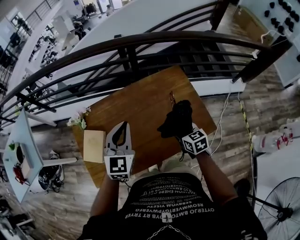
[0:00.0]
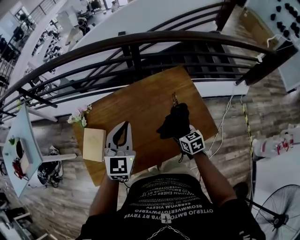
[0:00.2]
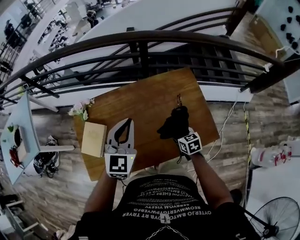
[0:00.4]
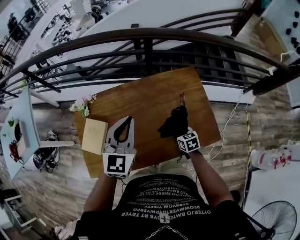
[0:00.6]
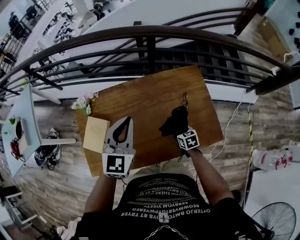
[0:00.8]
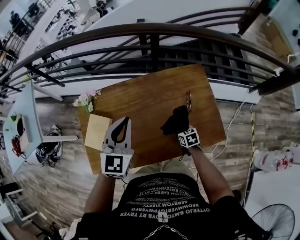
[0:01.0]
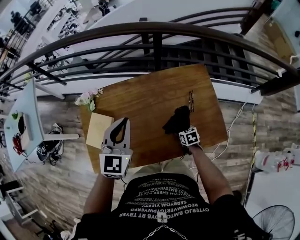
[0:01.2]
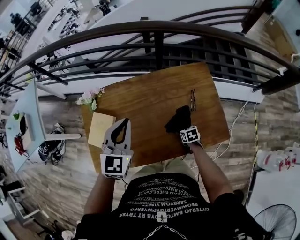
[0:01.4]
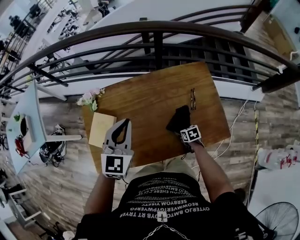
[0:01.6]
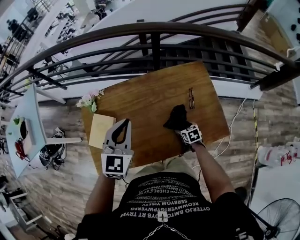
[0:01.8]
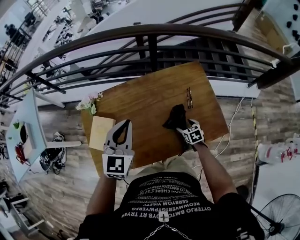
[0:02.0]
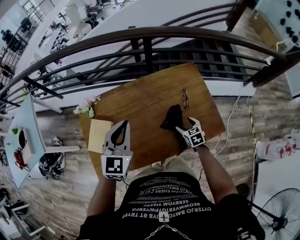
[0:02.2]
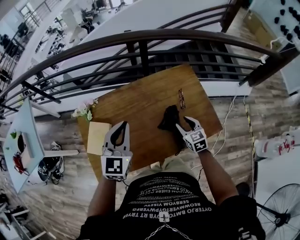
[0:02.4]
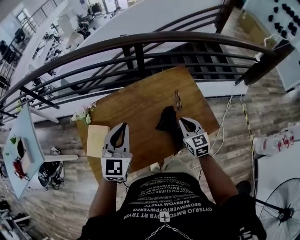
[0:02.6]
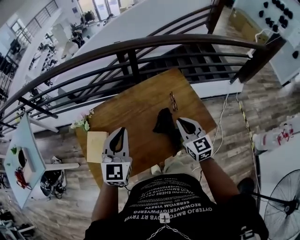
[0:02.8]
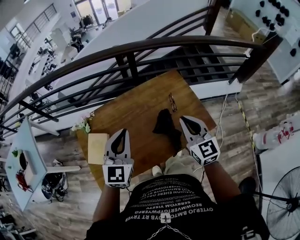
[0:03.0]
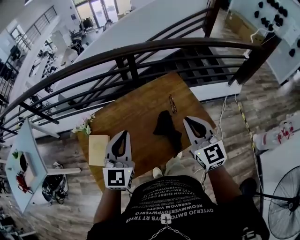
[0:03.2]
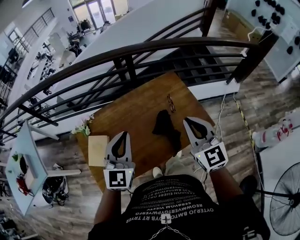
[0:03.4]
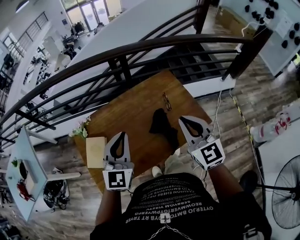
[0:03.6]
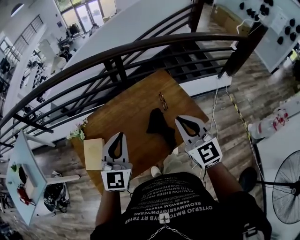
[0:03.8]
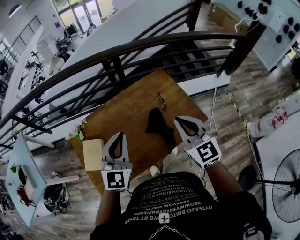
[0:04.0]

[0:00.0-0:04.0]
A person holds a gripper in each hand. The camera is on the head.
0:00.0 to 0:01.4: The right gripper is displaced downward by some 25 cm, and rotates roughly 20 degrees. The left gripper shifts some 5 cm to the left.
0:01.4 to 0:02.6: The right gripper shifts approximately 25 cm upward, tips its fingers upward by some 40 degrees, and closes up.
0:02.6 to 0:04.0: The left gripper ends up approximately 5 cm from where it was. The right gripper moves upward, approximately 20 cm.

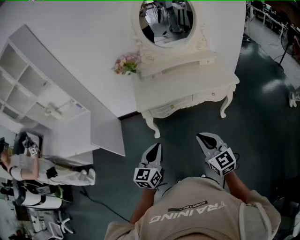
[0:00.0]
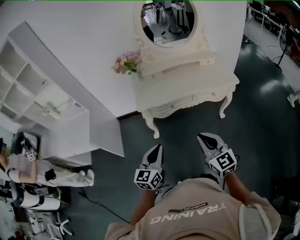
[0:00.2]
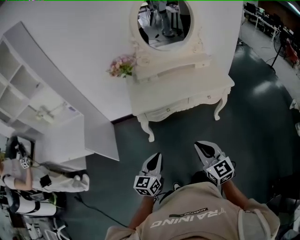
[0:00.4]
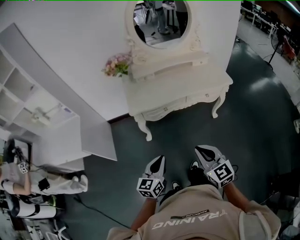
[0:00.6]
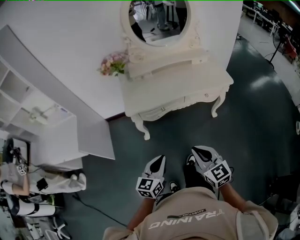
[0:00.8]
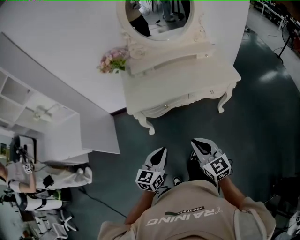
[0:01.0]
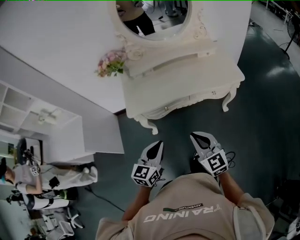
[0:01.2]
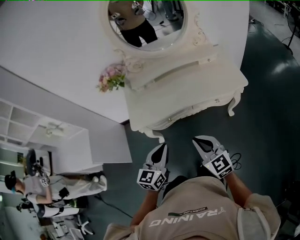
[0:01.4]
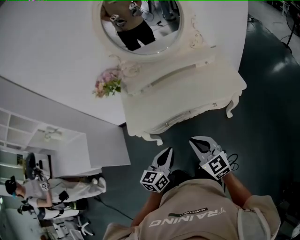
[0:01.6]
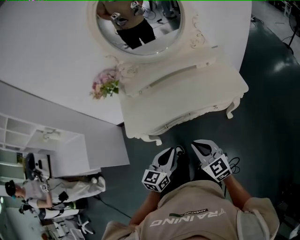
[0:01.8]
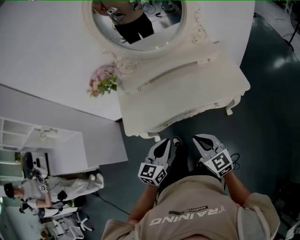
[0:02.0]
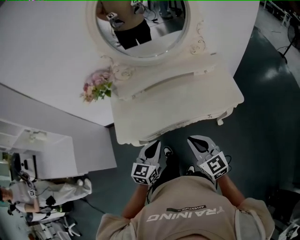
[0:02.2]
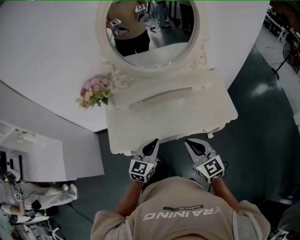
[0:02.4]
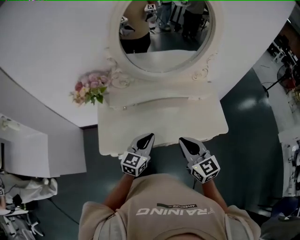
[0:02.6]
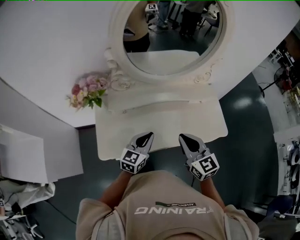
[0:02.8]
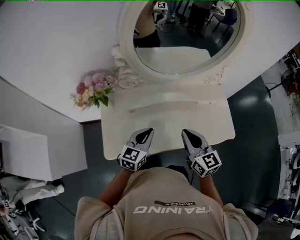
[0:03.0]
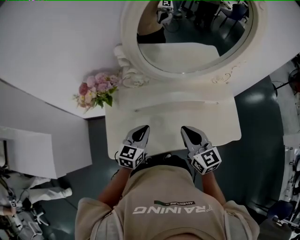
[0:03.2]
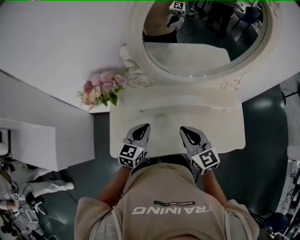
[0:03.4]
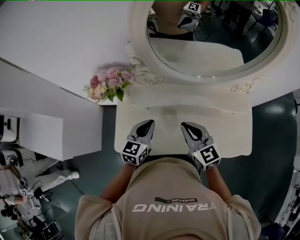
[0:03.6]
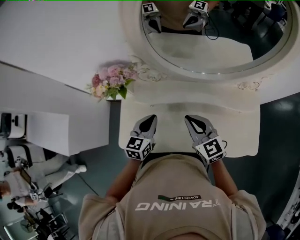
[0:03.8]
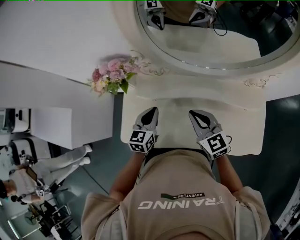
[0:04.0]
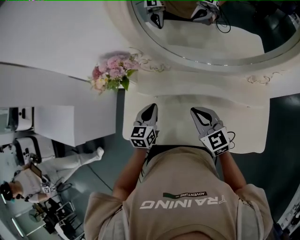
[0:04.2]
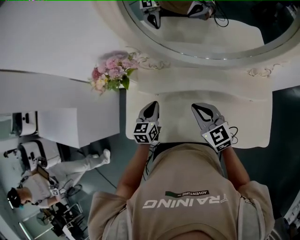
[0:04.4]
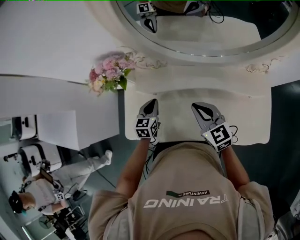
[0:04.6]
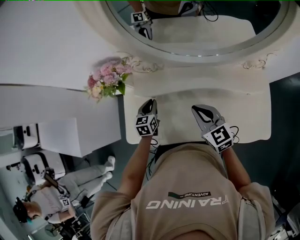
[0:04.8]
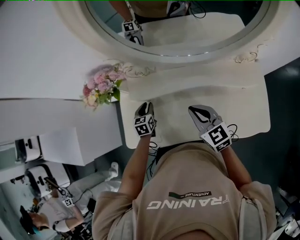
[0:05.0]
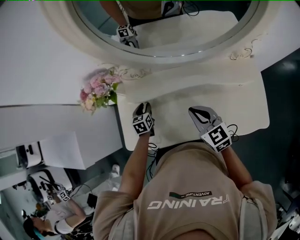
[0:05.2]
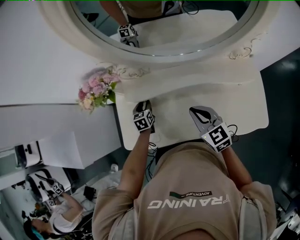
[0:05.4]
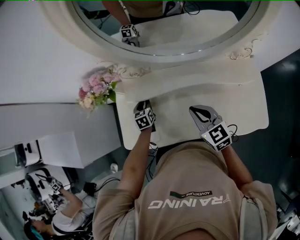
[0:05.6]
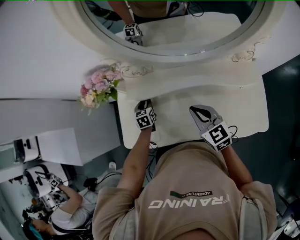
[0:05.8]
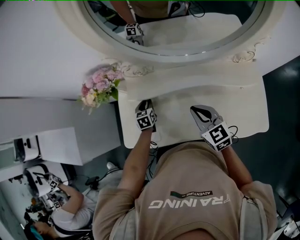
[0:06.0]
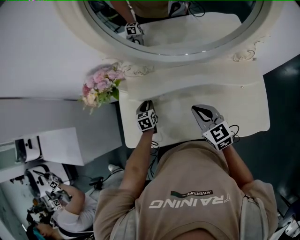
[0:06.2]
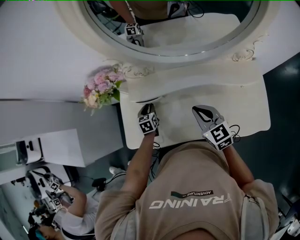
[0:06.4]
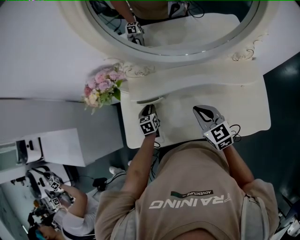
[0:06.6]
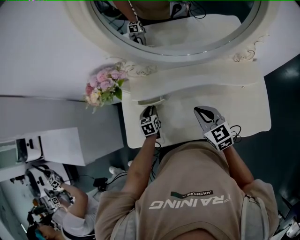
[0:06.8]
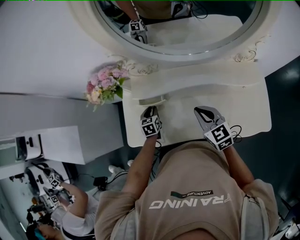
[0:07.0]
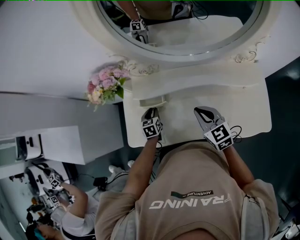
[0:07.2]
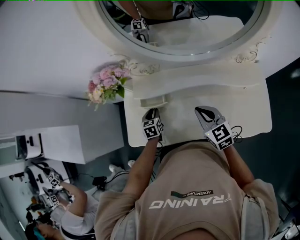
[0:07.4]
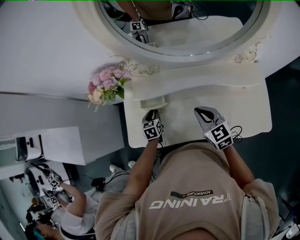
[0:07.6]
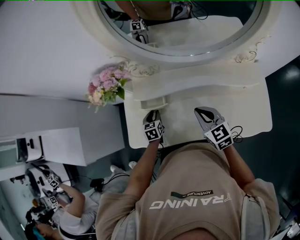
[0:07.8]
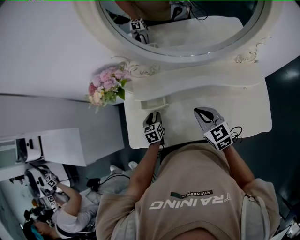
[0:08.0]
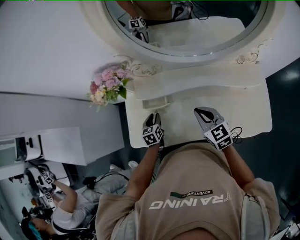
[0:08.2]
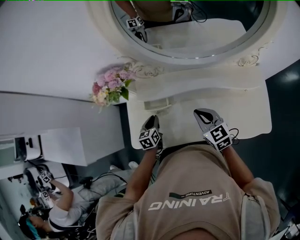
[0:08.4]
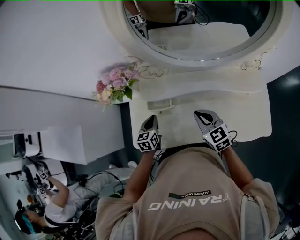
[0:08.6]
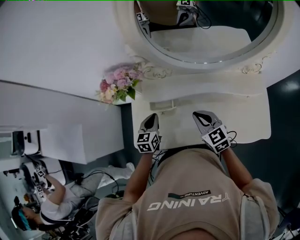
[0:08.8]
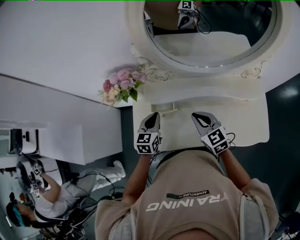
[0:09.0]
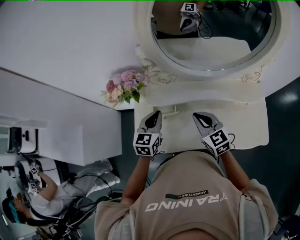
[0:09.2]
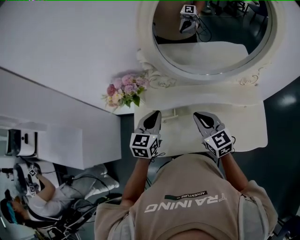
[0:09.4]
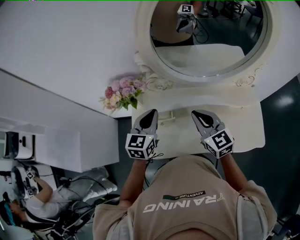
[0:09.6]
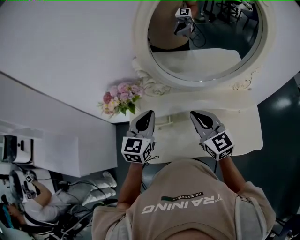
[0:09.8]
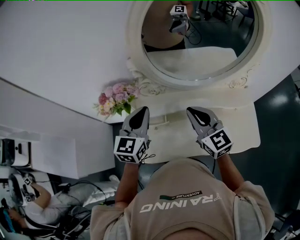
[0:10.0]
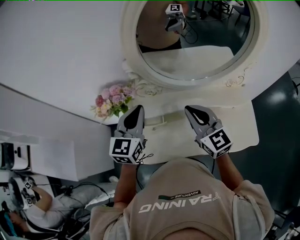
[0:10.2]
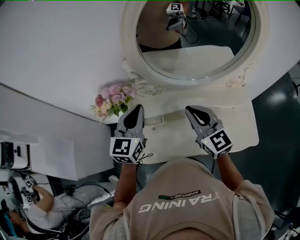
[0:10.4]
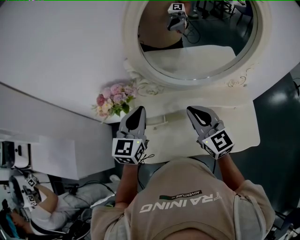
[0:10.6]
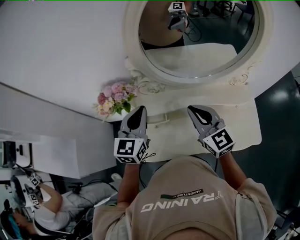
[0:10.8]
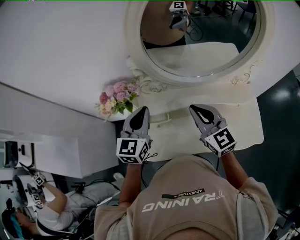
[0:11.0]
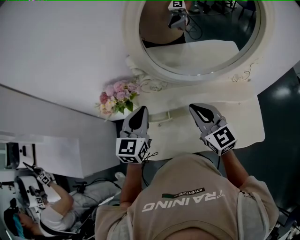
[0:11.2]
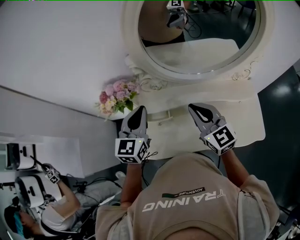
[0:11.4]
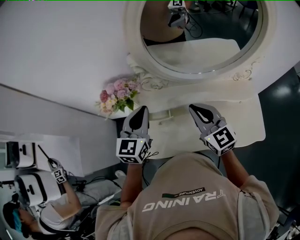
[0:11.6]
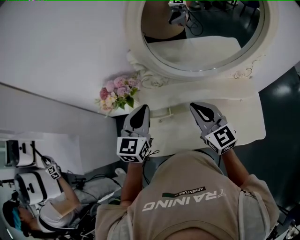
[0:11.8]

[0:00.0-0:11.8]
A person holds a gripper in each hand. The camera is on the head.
0:00.0 to 0:01.4: The left gripper shifts roughly 20 cm forward and to the right. Meanwhile the right gripper moves forward, some 15 cm.
0:01.4 to 0:03.0: The grippers both shift forward by approximately 35 cm.
0:03.0 to 0:04.4: The right gripper ends up approximately 15 cm from where it was, and turns by roughly 30 degrees; the left gripper ends up about 15 cm from where it was, and changes its angle by roughly 30 degrees.
0:04.4 to 0:06.0: The left gripper heads downward and forward, covering about 15 cm, and opens.
0:06.0 to 0:07.4: The left gripper heads backward, covering some 5 cm.
0:07.4 to 0:08.8: The left gripper is displaced upward by approximately 10 cm, and closes up; the right gripper shifts approximately 5 cm to the left.
0:08.8 to 0:10.4: The grippers both shift upward by roughly 20 cm. The left gripper rotates roughly 30 degrees; the right gripper changes its angle by approximately 20 degrees.
0:10.4 to 0:11.8: The grippers make only small movements.

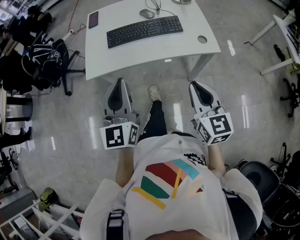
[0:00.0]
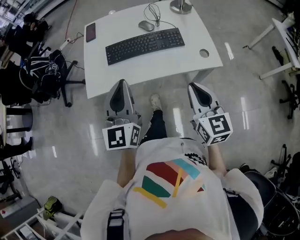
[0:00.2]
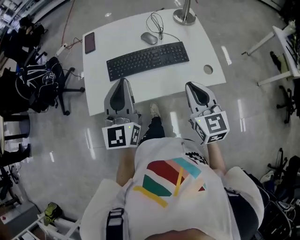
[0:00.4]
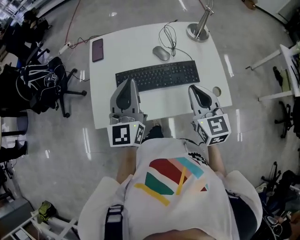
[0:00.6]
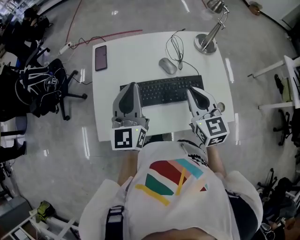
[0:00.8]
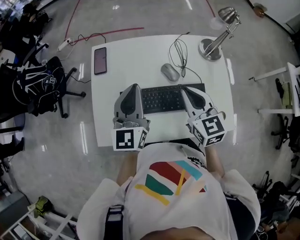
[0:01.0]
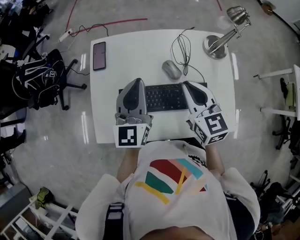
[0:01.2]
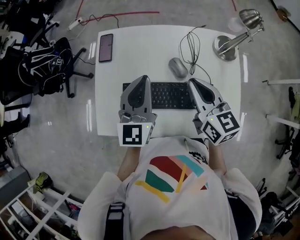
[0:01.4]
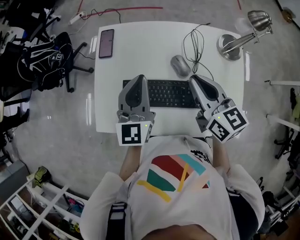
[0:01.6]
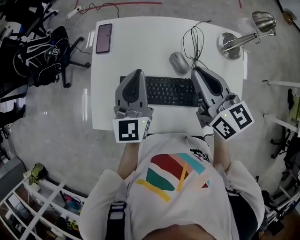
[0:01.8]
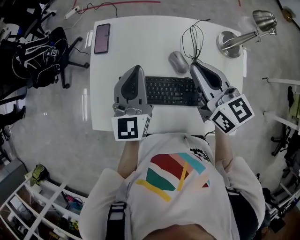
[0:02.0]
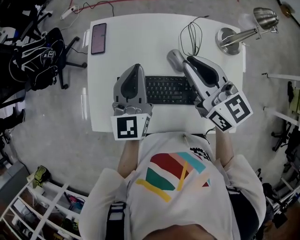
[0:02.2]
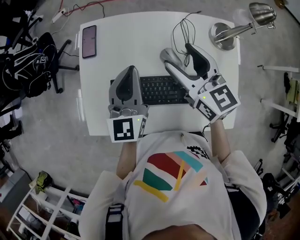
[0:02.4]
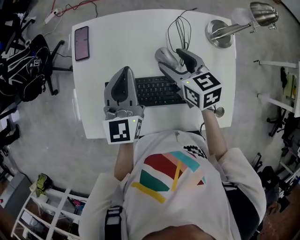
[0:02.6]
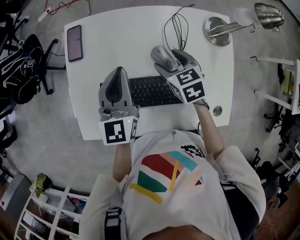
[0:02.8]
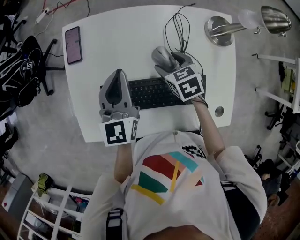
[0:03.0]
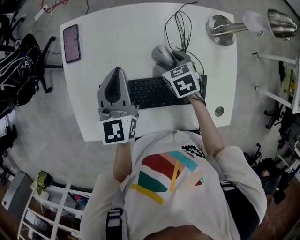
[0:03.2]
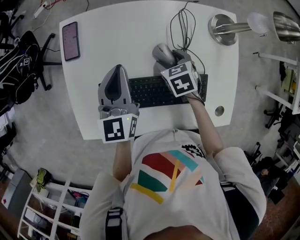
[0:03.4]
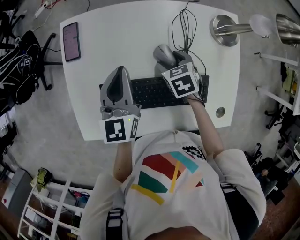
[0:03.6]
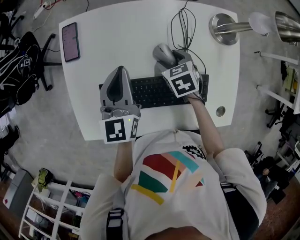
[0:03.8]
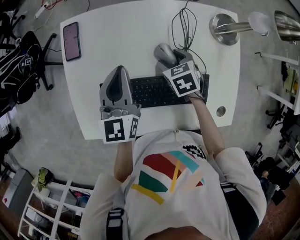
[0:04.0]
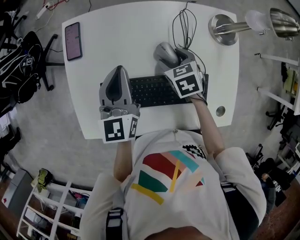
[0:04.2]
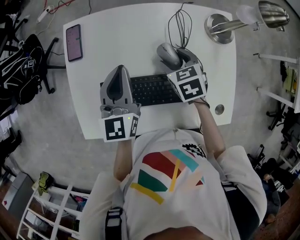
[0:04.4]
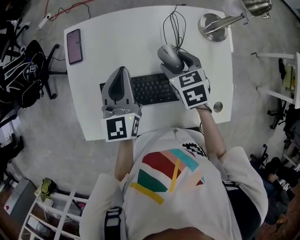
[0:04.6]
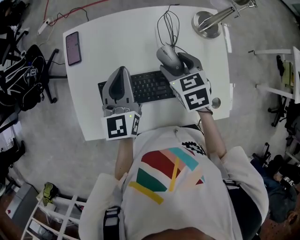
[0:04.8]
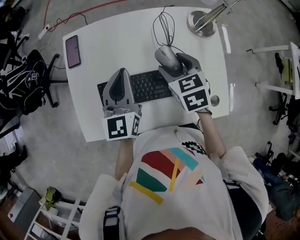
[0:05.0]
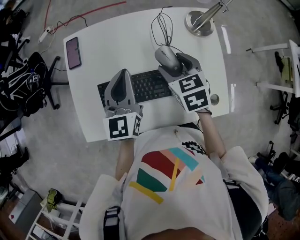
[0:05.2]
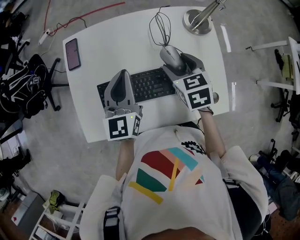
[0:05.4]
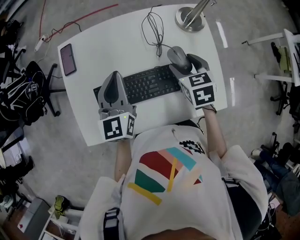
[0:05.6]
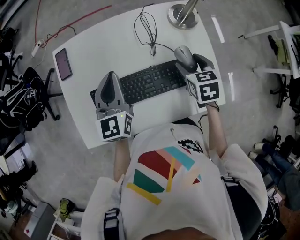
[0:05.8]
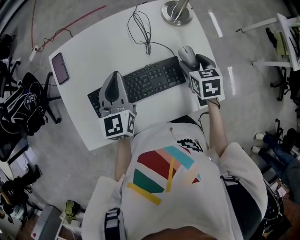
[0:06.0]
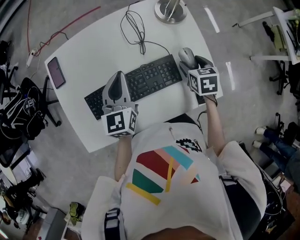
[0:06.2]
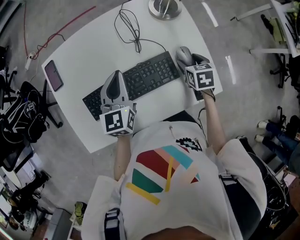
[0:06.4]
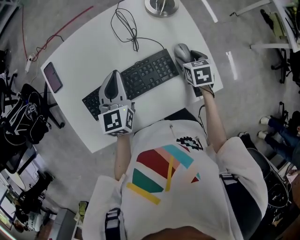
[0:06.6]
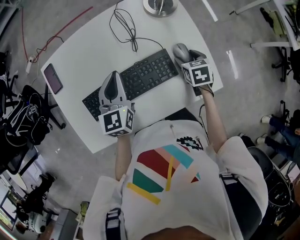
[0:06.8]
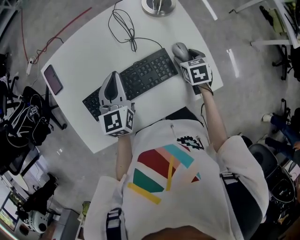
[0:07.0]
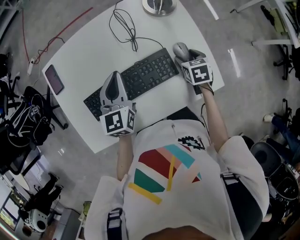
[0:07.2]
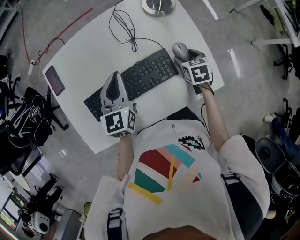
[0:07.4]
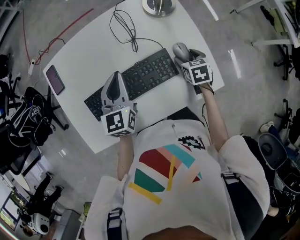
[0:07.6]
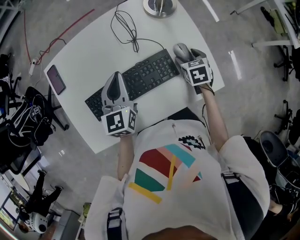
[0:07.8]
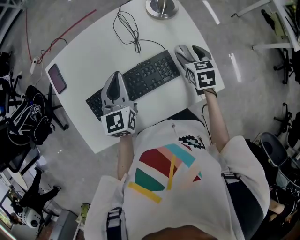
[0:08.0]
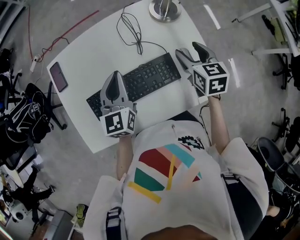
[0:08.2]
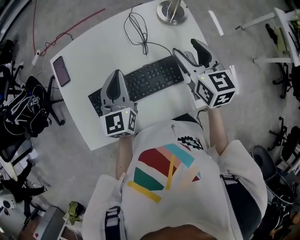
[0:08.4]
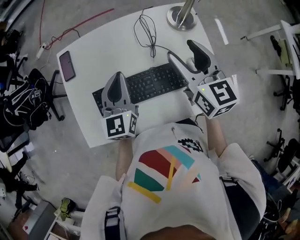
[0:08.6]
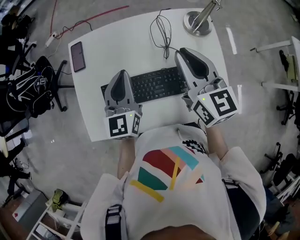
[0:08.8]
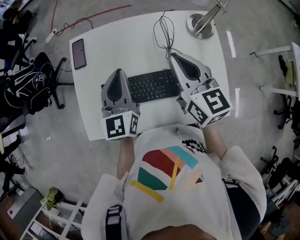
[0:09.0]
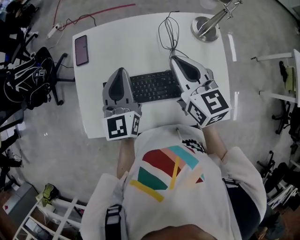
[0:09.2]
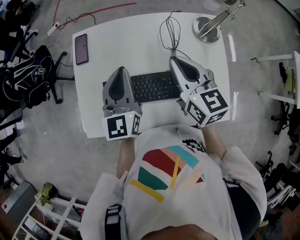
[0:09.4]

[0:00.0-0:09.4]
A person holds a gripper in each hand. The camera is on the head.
0:00.0 to 0:01.6: The two grippers travel together, forward, about 50 cm. The right gripper changes its angle by approximately 30 degrees.
0:01.6 to 0:03.2: The right gripper shifts about 25 cm downward, tips its fingers downward by about 40 degrees, and opens its fingers, while the left gripper shifts approximately 10 cm downward and forward.
0:03.2 to 0:04.8: The right gripper moves upward and backward, about 15 cm, while the left gripper is displaced backward by some 5 cm.
0:04.8 to 0:06.2: The left gripper moves to the right, approximately 10 cm; the right gripper is displaced to the right by about 20 cm, and swivels roughly 30 degrees.
0:06.2 to 0:07.8: The right gripper moves downward, roughly 5 cm.
0:07.8 to 0:09.4: The left gripper shifts about 15 cm to the left and upward, and changes its angle by approximately 20 degrees, while the right gripper shifts approximately 35 cm upward and to the left, tips its fingers upward by roughly 40 degrees, and closes its fingers.
